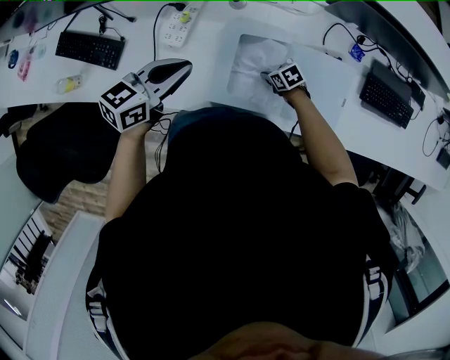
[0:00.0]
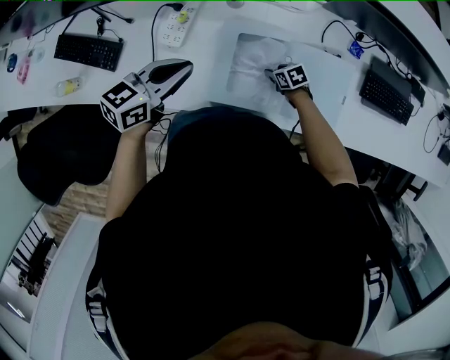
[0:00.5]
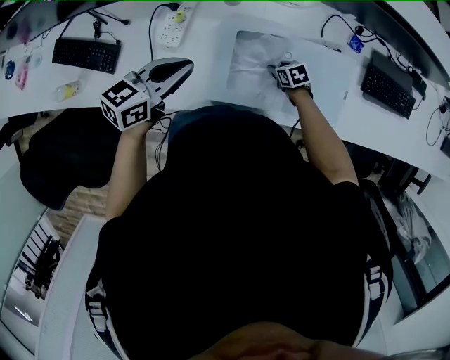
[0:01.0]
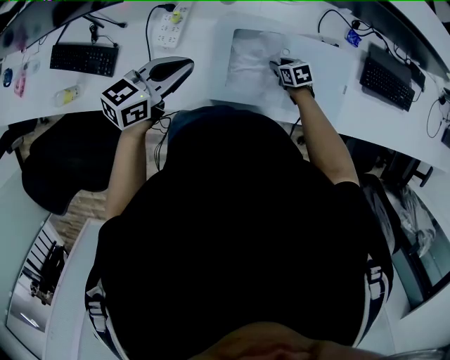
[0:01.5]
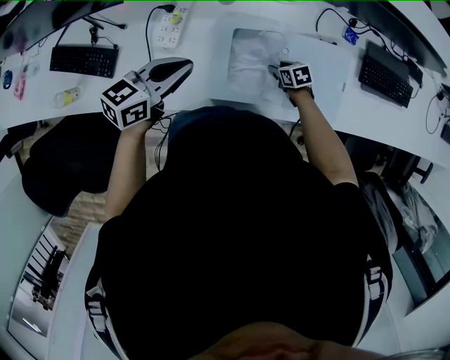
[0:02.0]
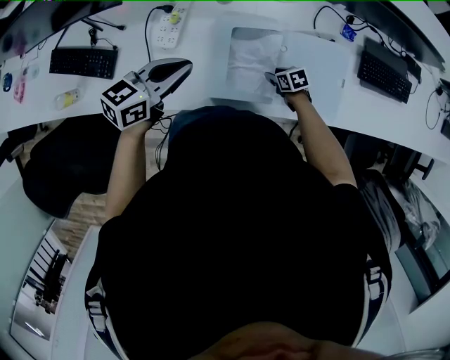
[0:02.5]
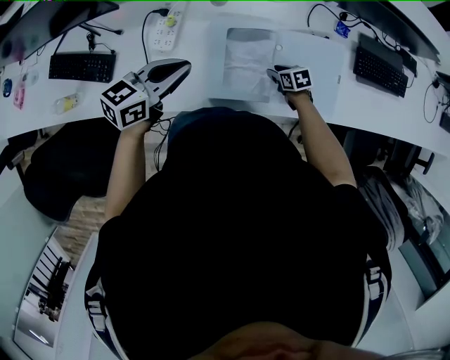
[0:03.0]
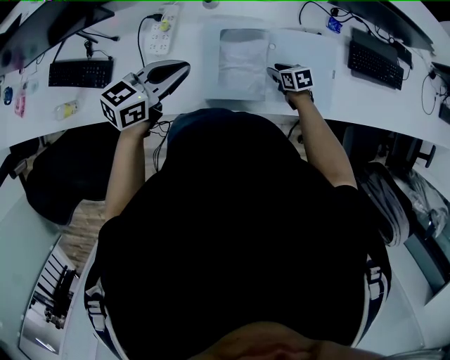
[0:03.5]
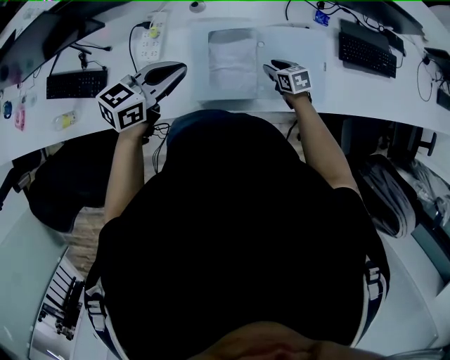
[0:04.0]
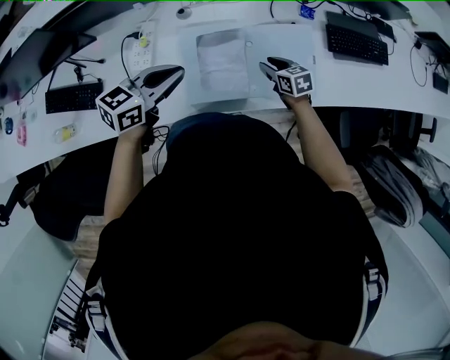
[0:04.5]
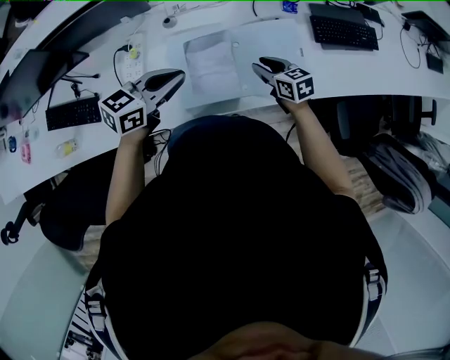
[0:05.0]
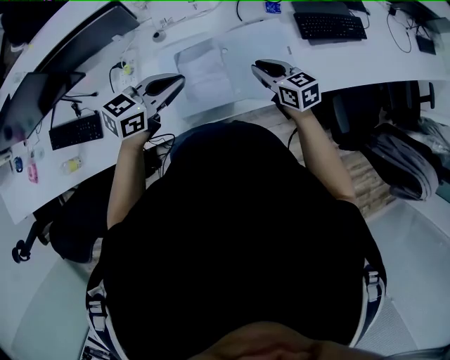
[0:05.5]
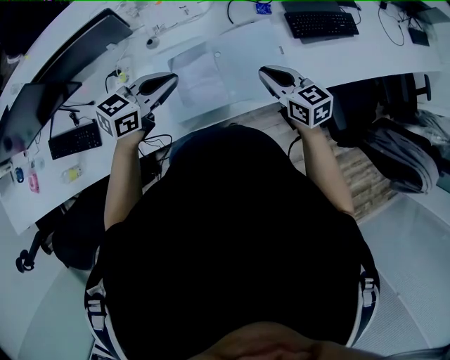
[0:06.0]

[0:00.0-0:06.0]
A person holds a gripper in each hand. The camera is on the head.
0:00.0 to 0:02.0: There are only small adjustments of the grippers.
0:02.0 to 0:04.0: The right gripper heads upward, covering some 10 cm, while the left gripper moves approximately 5 cm.
0:04.0 to 0:06.0: The right gripper is displaced upward by roughly 25 cm, rotates some 30 degrees, and closes, while the left gripper goes approximately 10 cm to the right.

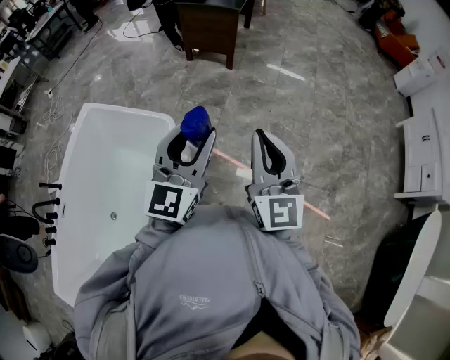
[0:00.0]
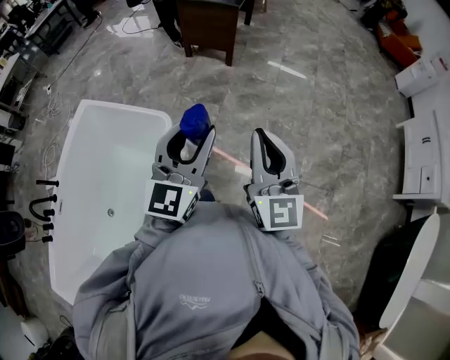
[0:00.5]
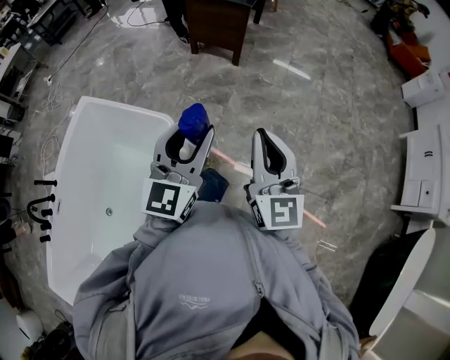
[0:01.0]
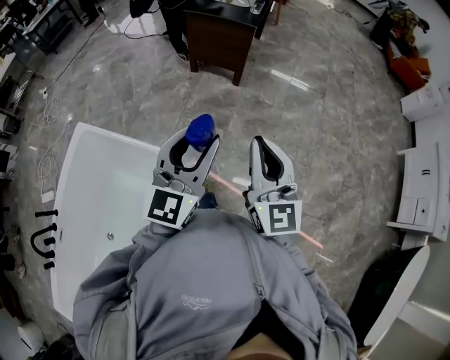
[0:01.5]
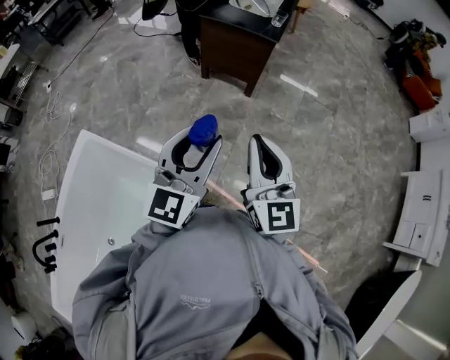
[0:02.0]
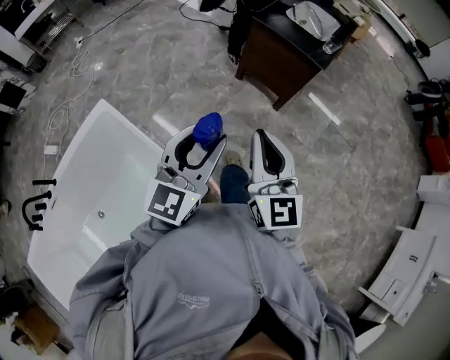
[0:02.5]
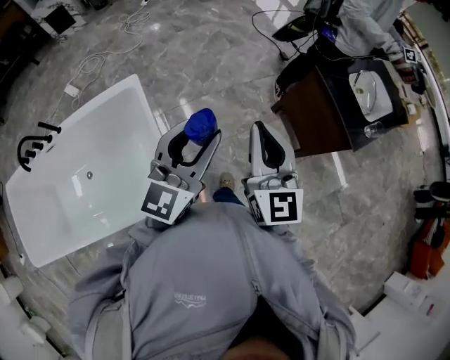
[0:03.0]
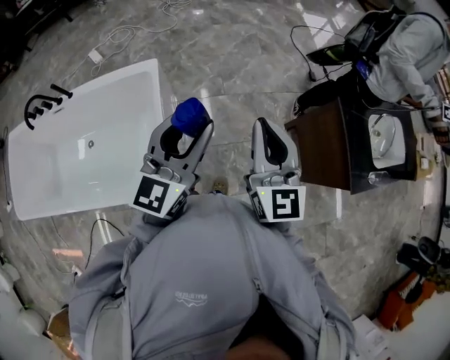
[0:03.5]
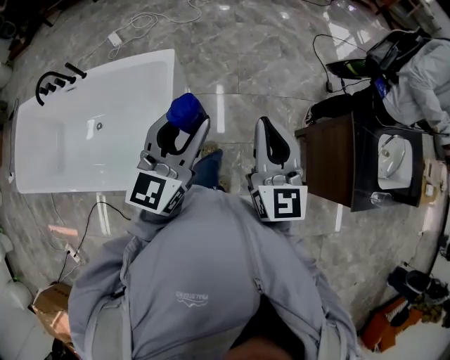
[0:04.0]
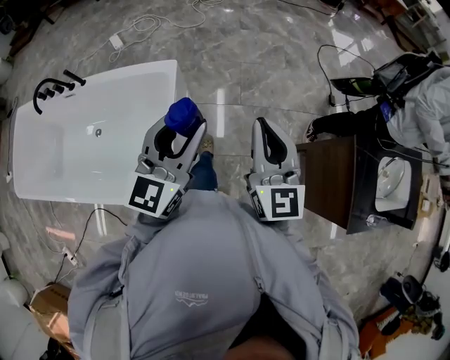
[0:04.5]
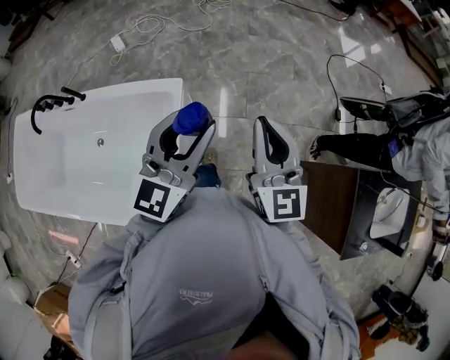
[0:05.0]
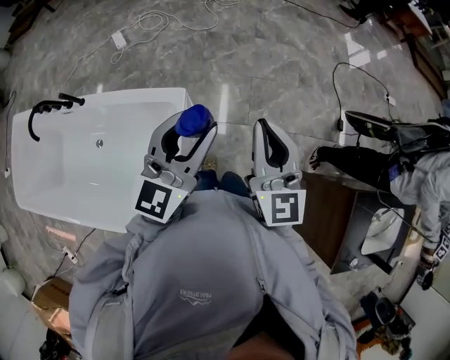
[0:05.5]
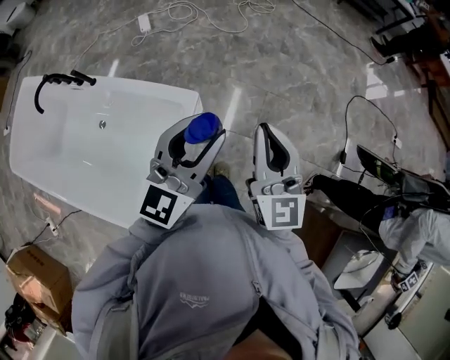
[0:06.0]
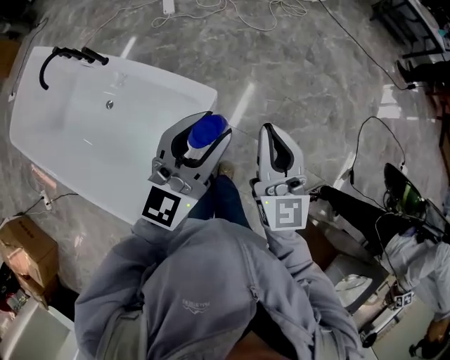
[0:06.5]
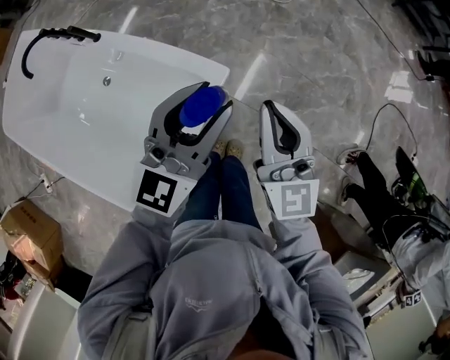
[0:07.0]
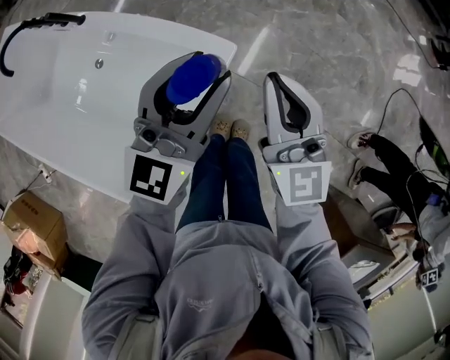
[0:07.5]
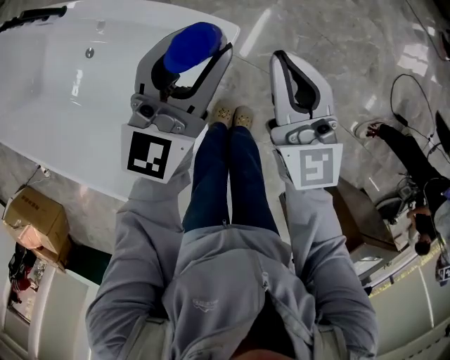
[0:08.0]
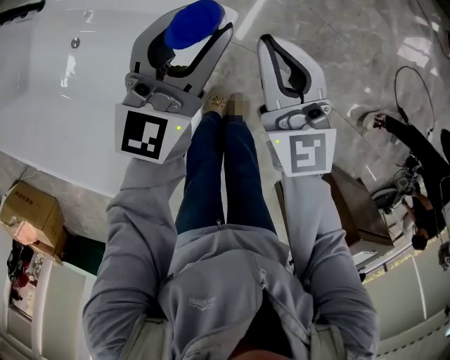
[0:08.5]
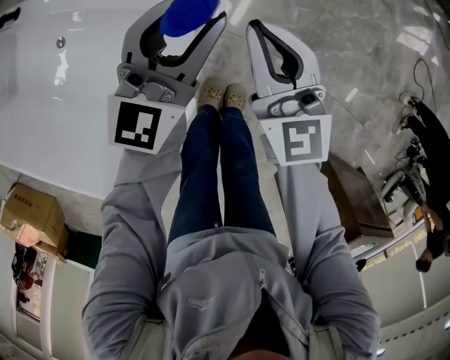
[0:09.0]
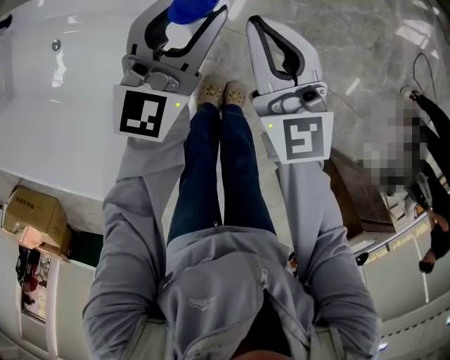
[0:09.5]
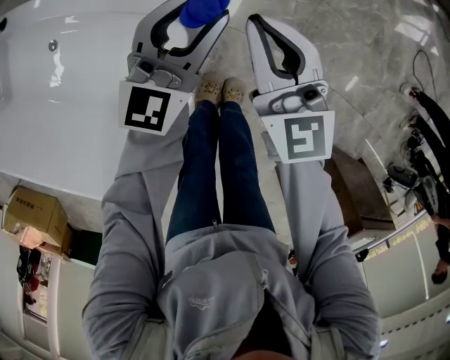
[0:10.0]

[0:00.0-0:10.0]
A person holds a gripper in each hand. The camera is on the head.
0:00.0 to 0:02.0: Both grippers move forward, approximately 35 cm.
0:02.0 to 0:04.0: The right gripper changes place by approximately 40 cm, and changes its angle by approximately 60 degrees. Meanwhile the left gripper moves some 30 cm, and changes its angle by some 70 degrees.
0:04.0 to 0:06.0: Both grippers move forward, some 35 cm. The right gripper swivels some 20 degrees.
0:06.0 to 0:08.0: Both grippers travel together downward, forward and to the left, some 30 cm.
0:08.0 to 0:10.0: Both grippers move downward, approximately 15 cm.

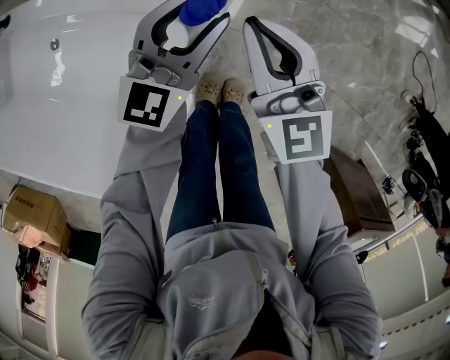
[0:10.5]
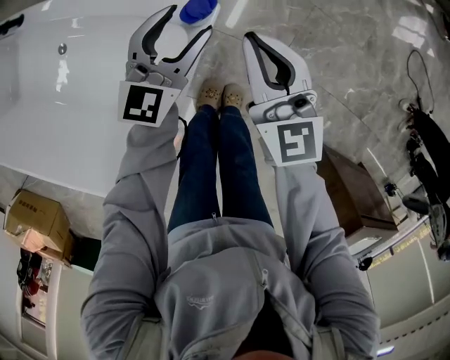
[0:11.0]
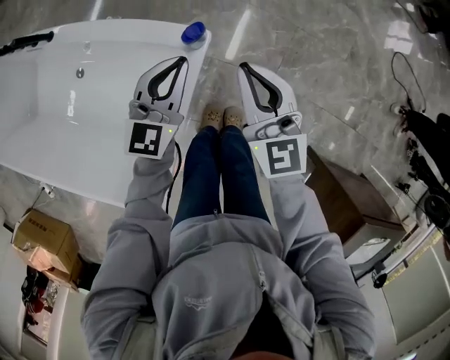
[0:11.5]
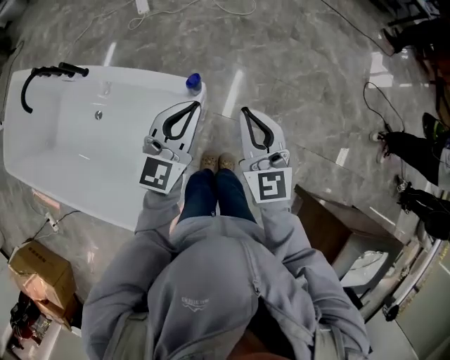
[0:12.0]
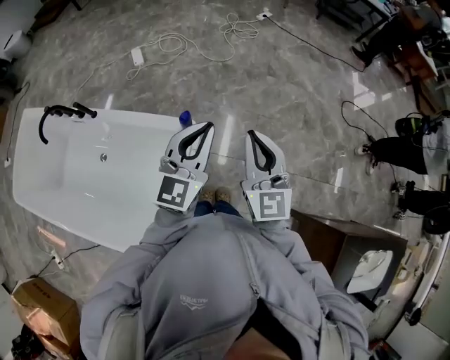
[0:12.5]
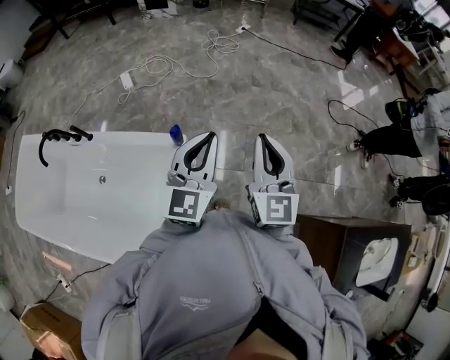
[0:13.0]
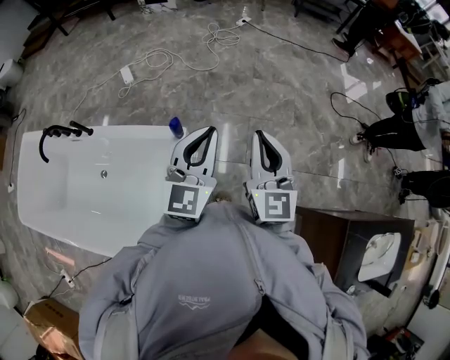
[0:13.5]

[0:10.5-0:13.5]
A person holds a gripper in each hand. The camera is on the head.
0:10.5 to 0:12.0: Both grippers travel together upward, about 25 cm. The left gripper closes.
0:12.0 to 0:13.5: Both grippers travel together upward and to the right, about 20 cm. The right gripper swivels roughly 20 degrees.

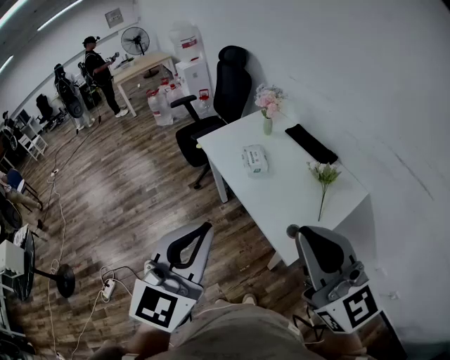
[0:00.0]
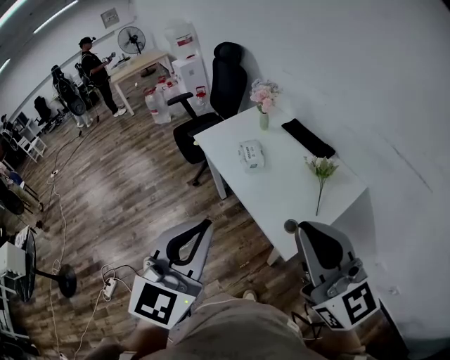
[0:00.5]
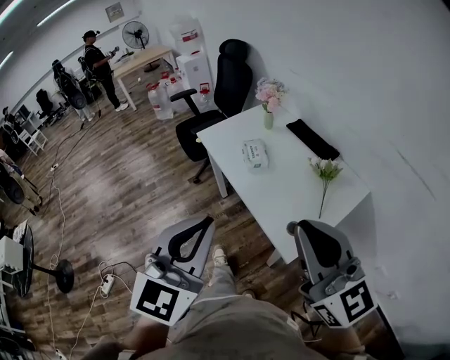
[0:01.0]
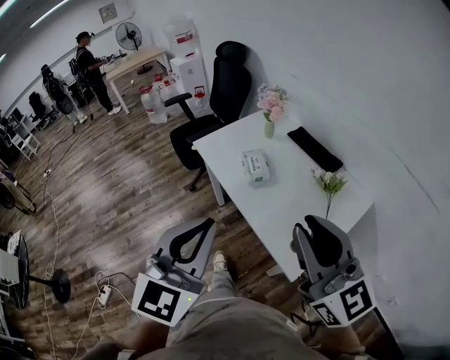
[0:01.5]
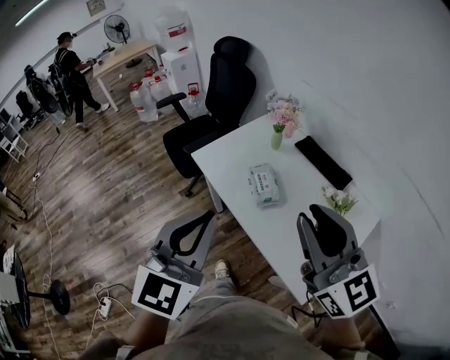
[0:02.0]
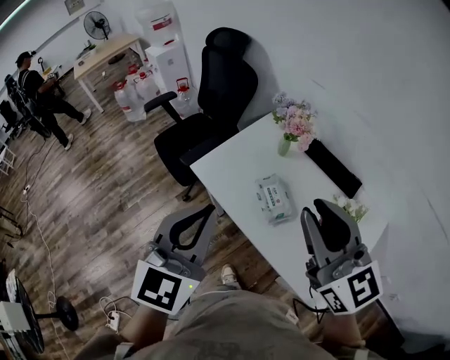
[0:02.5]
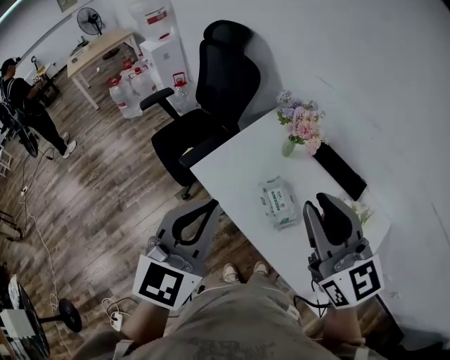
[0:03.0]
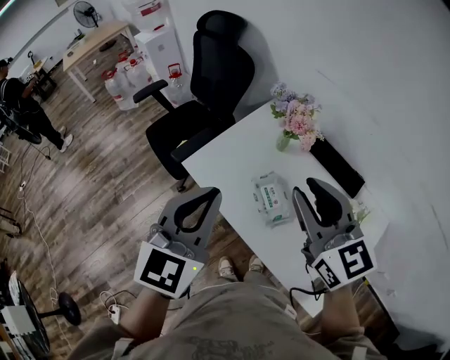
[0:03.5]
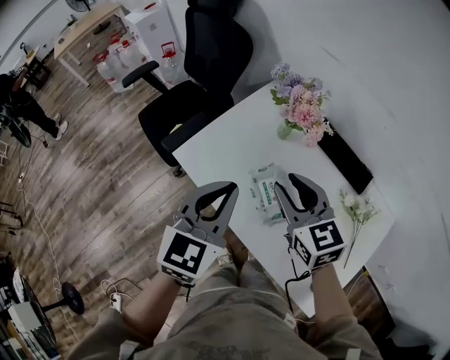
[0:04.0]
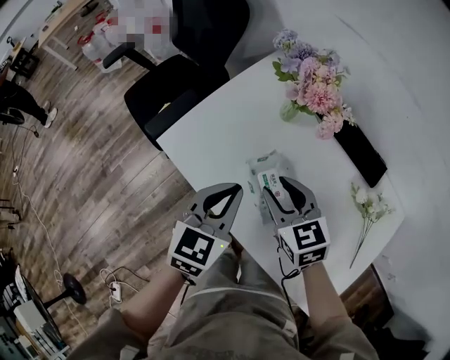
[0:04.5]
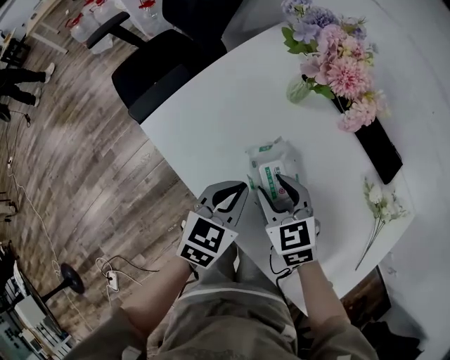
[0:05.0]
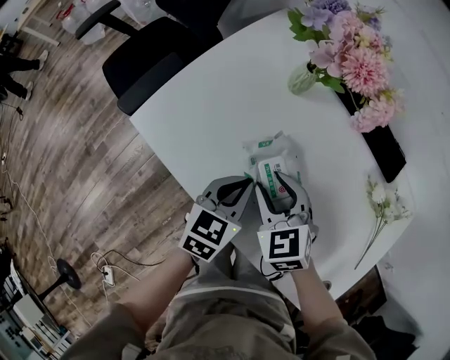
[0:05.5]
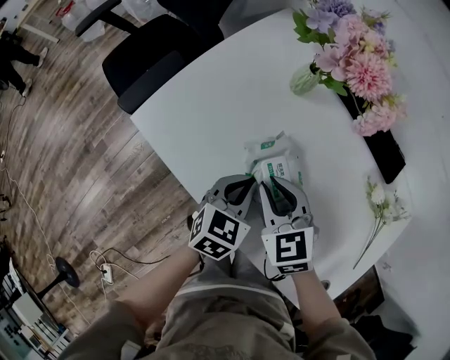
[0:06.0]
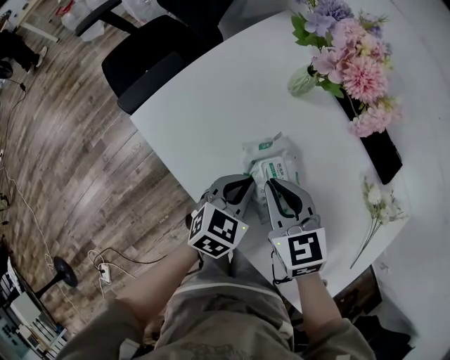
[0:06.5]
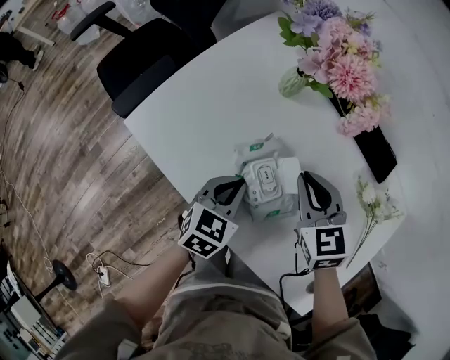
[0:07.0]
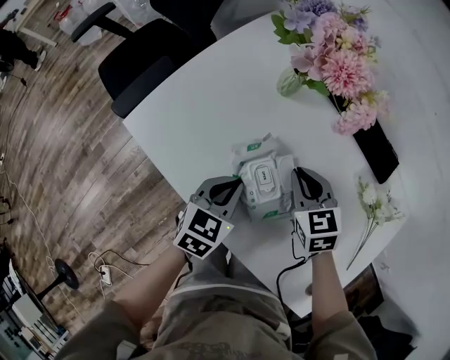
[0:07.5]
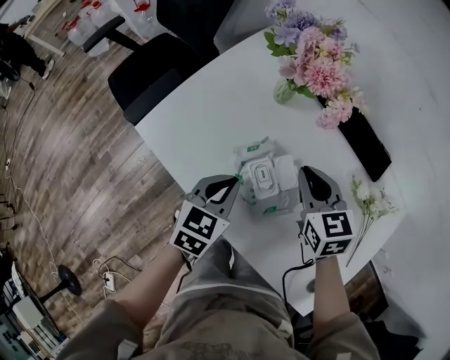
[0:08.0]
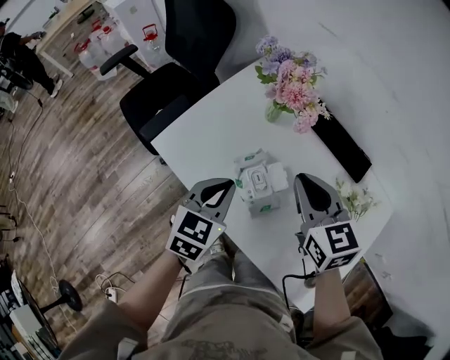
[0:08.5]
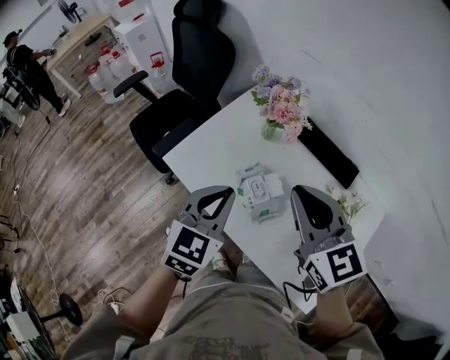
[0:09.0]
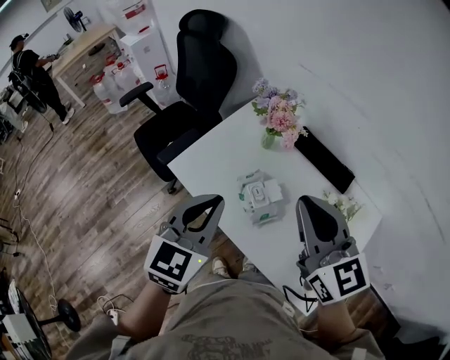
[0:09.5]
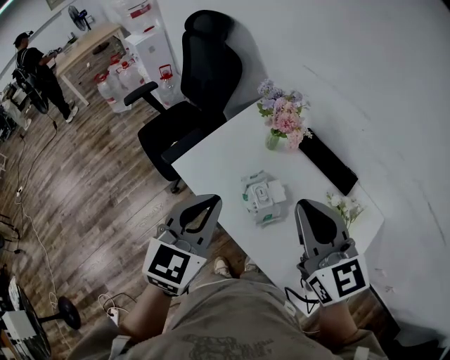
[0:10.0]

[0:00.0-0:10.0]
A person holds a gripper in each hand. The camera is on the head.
0:00.0 to 0:02.0: The two grippers go approximately 25 cm forward.
0:02.0 to 0:04.0: Both grippers move forward and downward, about 35 cm. The right gripper rotates approximately 30 degrees.
0:04.0 to 0:06.0: The two grippers go some 25 cm downward. The left gripper rotates approximately 30 degrees.
0:06.0 to 0:08.0: The left gripper ends up some 5 cm from where it was. The right gripper shifts about 10 cm to the right and forward.
0:08.0 to 0:10.0: The right gripper goes about 35 cm upward and backward, and swivels some 30 degrees. The left gripper shifts approximately 30 cm upward, and changes its angle by roughly 30 degrees.
